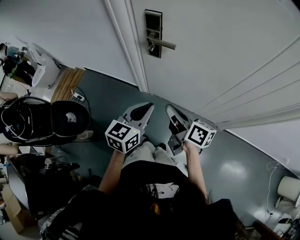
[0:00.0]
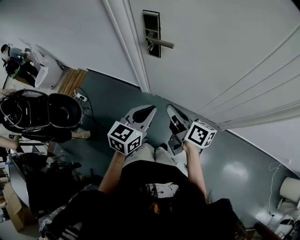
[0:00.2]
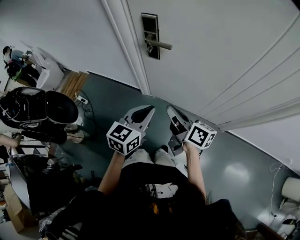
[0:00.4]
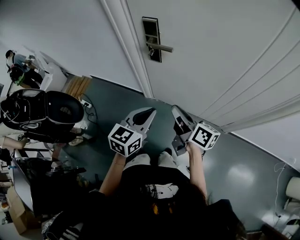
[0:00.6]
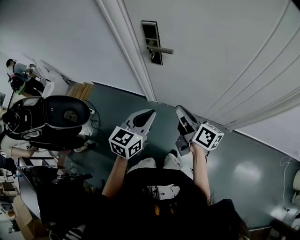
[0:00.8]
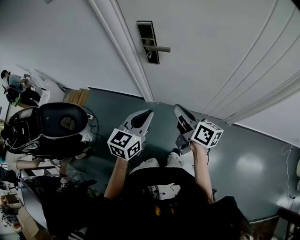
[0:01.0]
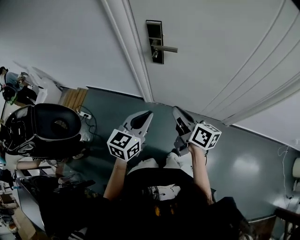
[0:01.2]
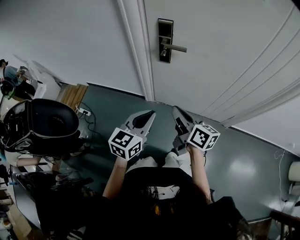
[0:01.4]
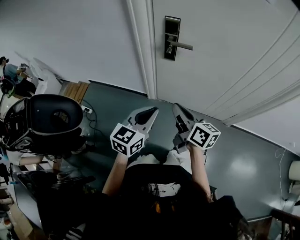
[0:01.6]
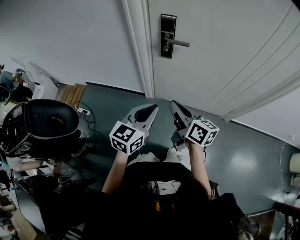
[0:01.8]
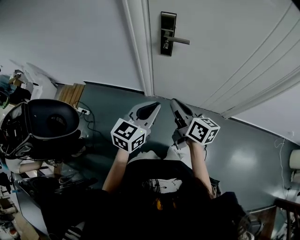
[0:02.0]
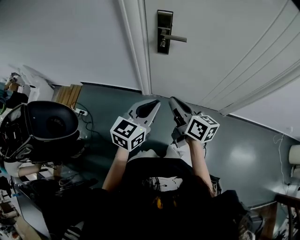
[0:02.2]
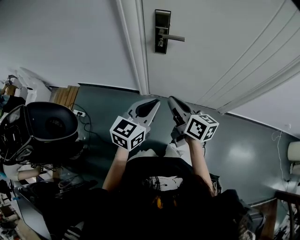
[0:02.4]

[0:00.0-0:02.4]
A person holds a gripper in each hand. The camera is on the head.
0:00.0 to 0:01.2: The right gripper shifts by approximately 5 cm, while the left gripper goes roughly 10 cm to the left and backward.
0:01.2 to 0:02.4: The right gripper goes about 10 cm to the left.

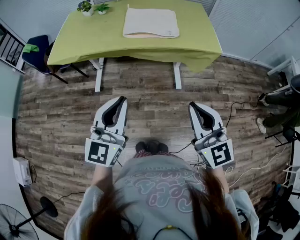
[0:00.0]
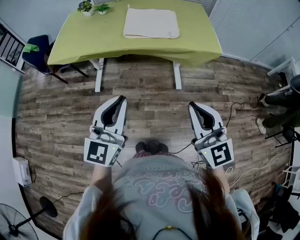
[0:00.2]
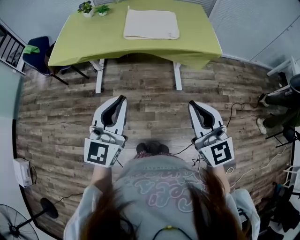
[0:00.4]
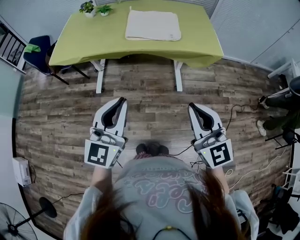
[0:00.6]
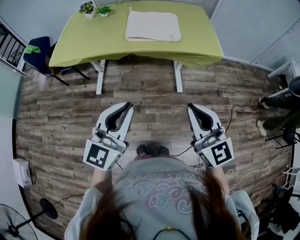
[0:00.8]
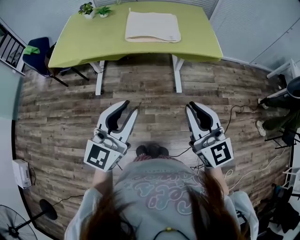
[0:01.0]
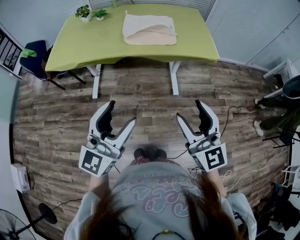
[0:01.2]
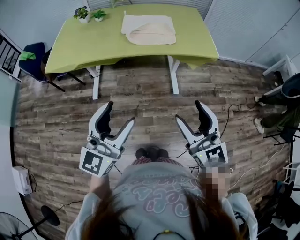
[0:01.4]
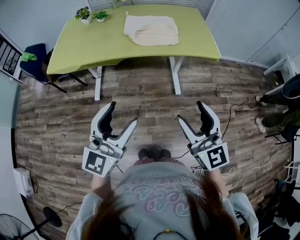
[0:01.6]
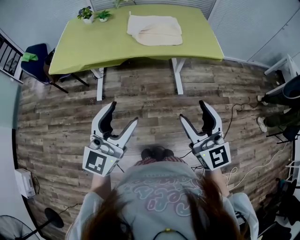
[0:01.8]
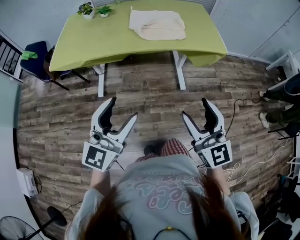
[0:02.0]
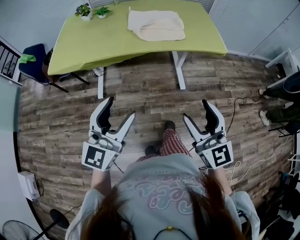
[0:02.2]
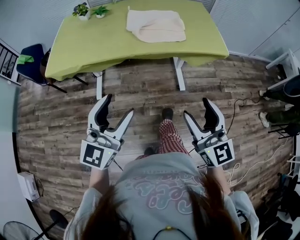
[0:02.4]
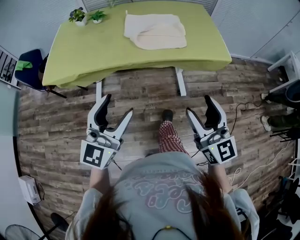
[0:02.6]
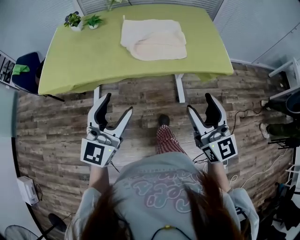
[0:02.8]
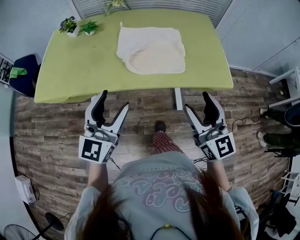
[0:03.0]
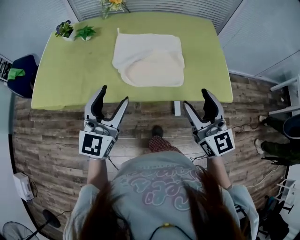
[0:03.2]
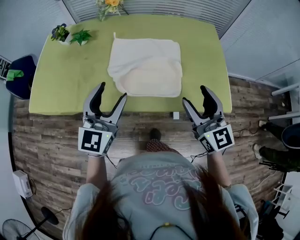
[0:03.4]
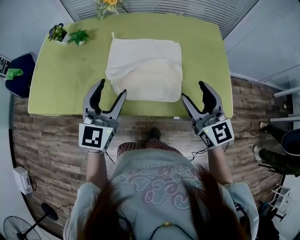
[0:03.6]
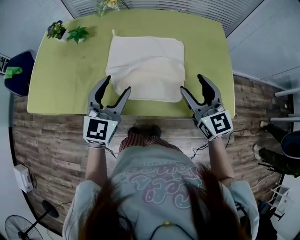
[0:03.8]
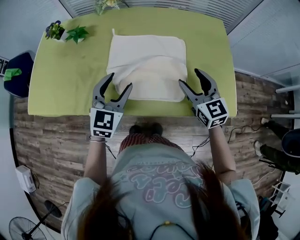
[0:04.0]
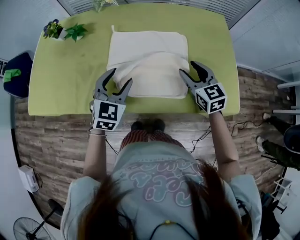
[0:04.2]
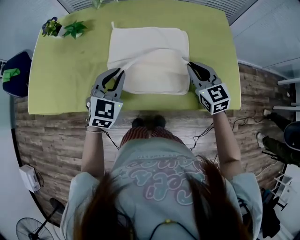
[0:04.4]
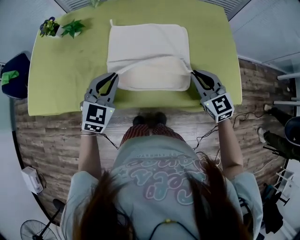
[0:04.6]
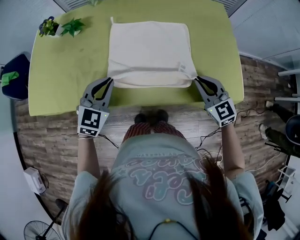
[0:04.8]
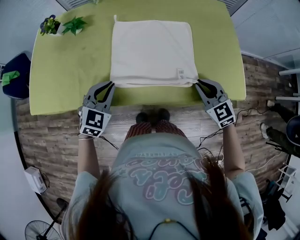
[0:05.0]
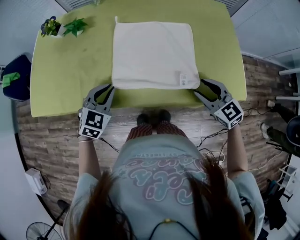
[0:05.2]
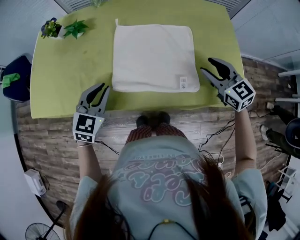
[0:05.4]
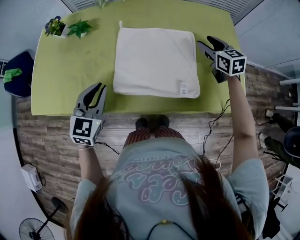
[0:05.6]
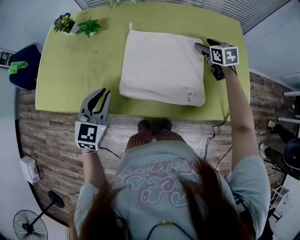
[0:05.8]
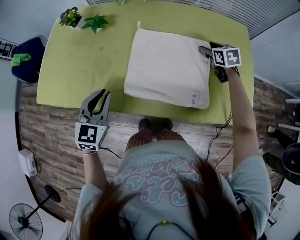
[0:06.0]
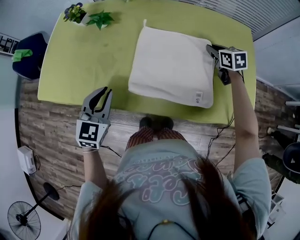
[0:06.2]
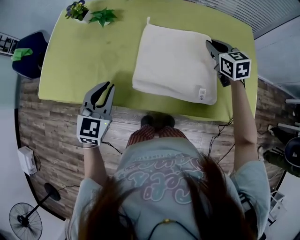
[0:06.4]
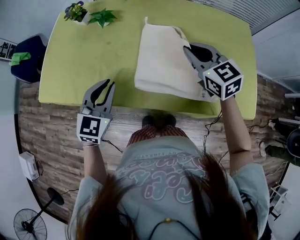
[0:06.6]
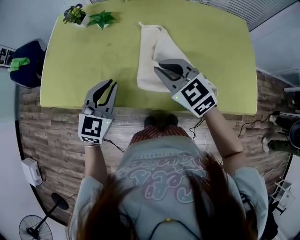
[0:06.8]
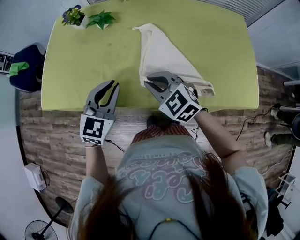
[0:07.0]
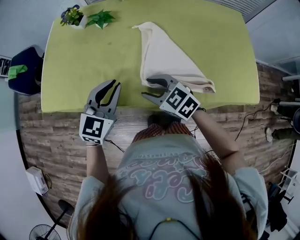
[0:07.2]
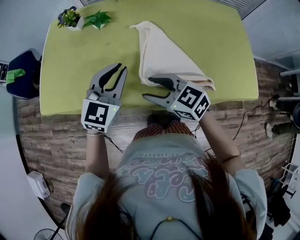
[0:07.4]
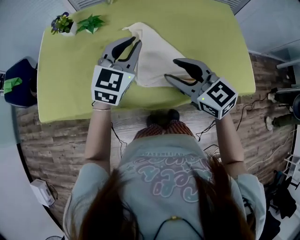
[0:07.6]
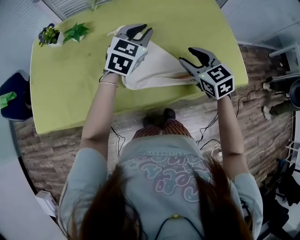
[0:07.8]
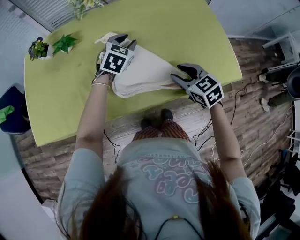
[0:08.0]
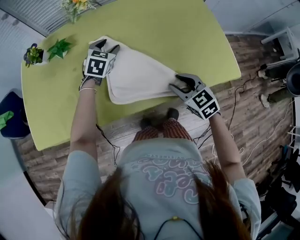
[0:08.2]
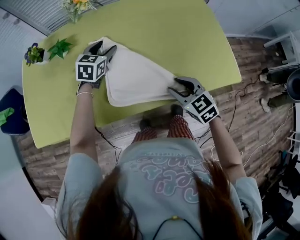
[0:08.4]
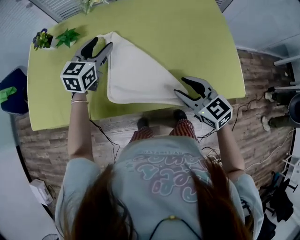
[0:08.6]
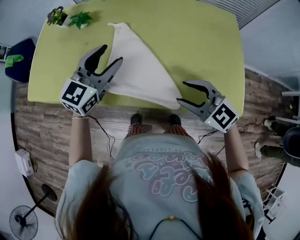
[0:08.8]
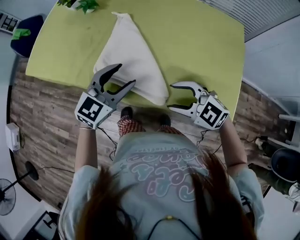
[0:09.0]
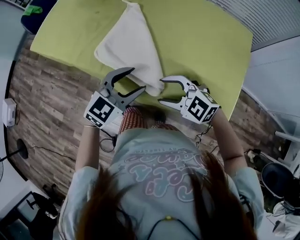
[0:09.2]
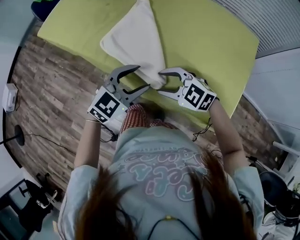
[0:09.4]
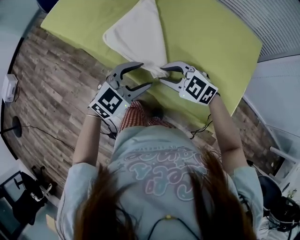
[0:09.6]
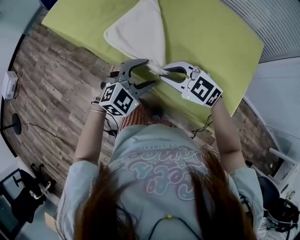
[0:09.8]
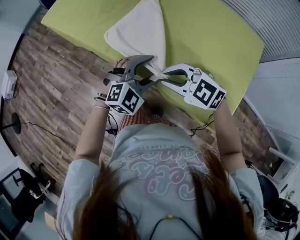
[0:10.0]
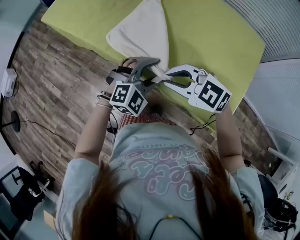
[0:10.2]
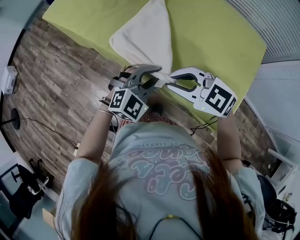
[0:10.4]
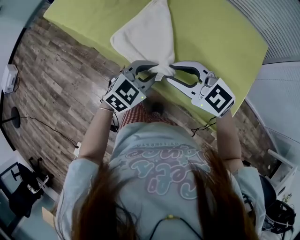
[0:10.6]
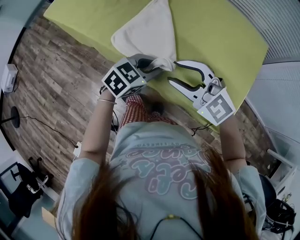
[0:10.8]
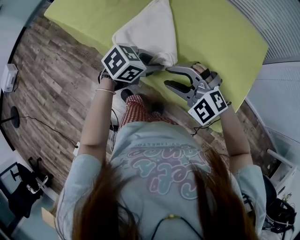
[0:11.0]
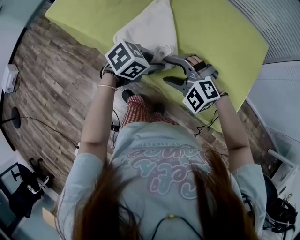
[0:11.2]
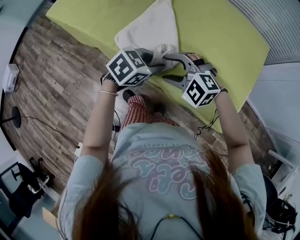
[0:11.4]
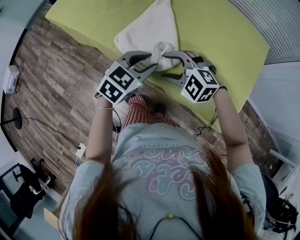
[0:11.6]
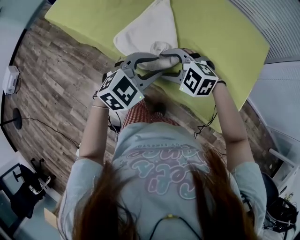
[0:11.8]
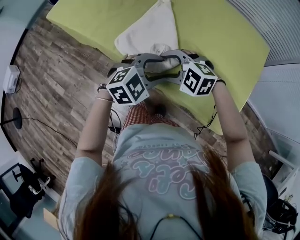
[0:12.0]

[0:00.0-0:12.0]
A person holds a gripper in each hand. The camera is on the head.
0:00.0 to 0:01.6: The right gripper opens its fingers, while the left gripper opens.
0:01.6 to 0:03.0: Both grippers travel together forward, some 25 cm.
0:03.0 to 0:04.4: The grippers both shift forward and downward by roughly 30 cm. The right gripper swivels some 20 degrees, and closes its fingers. The left gripper changes its angle by roughly 30 degrees, and closes up.
0:04.4 to 0:06.0: The right gripper is displaced forward by approximately 20 cm, turns by about 30 degrees, and opens up. Meanwhile the left gripper goes roughly 10 cm to the left.
0:06.0 to 0:07.6: The right gripper heads to the left, backward and upward, covering about 35 cm, turns by some 30 degrees, and closes, then opens again; the left gripper travels forward, to the right and upward by some 15 cm, and changes its angle by about 30 degrees.
0:07.6 to 0:09.0: The left gripper goes up and down, approximately 15 cm each way, reversing 2 times, and opens its fingers. Meanwhile the right gripper moves approximately 20 cm, and turns by about 50 degrees.
0:09.0 to 0:10.4: The left gripper ends up some 15 cm from where it was, rotates some 20 degrees, and closes its fingers. The right gripper closes.
0:10.4 to 0:12.0: The right gripper changes place by about 10 cm, rotates some 20 degrees, and opens. The left gripper opens up.

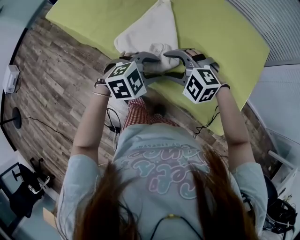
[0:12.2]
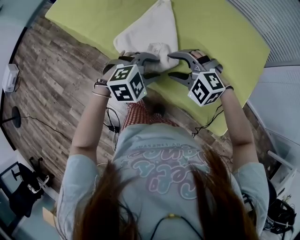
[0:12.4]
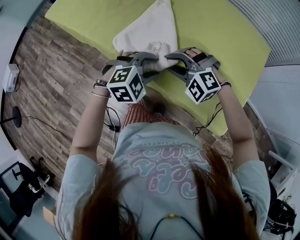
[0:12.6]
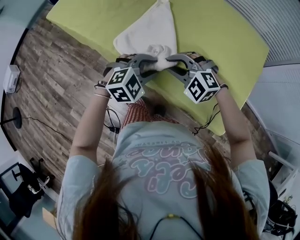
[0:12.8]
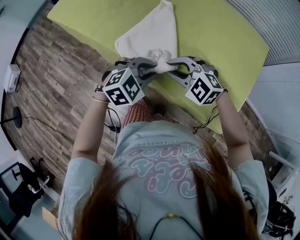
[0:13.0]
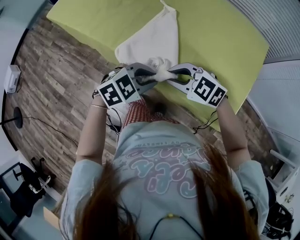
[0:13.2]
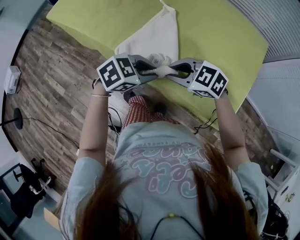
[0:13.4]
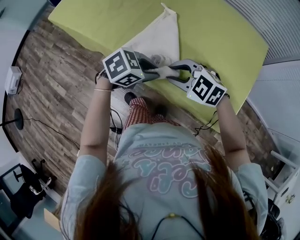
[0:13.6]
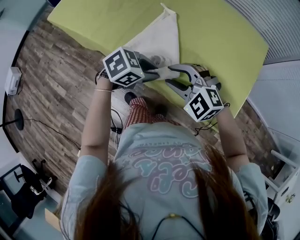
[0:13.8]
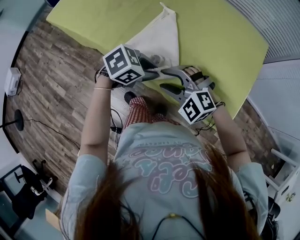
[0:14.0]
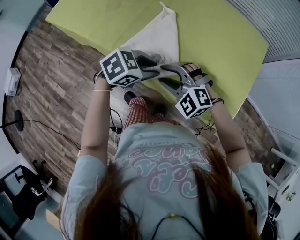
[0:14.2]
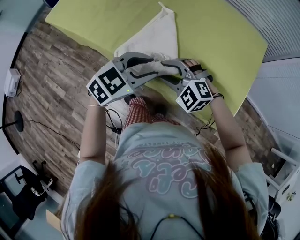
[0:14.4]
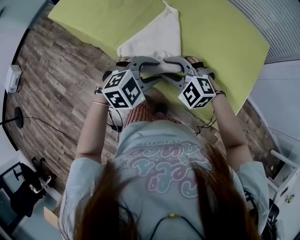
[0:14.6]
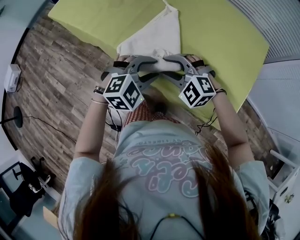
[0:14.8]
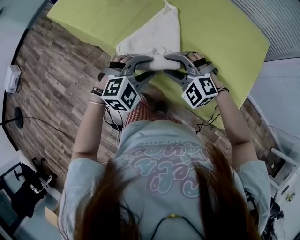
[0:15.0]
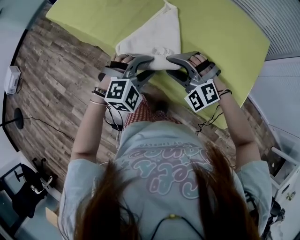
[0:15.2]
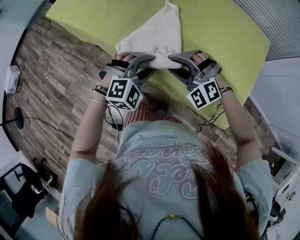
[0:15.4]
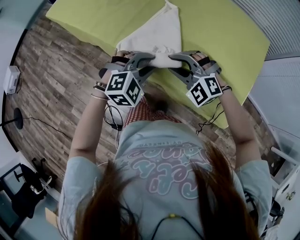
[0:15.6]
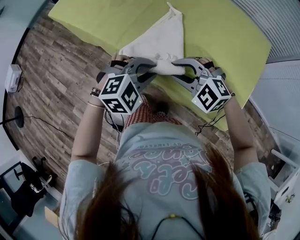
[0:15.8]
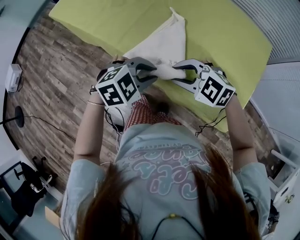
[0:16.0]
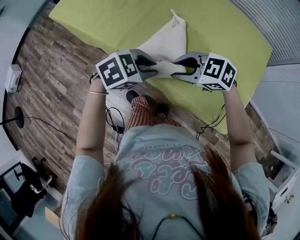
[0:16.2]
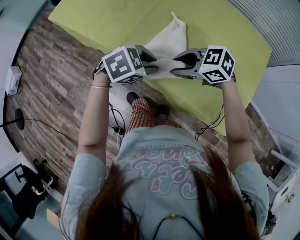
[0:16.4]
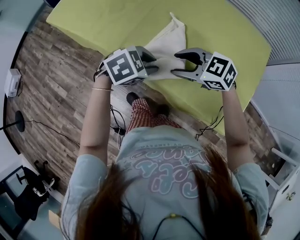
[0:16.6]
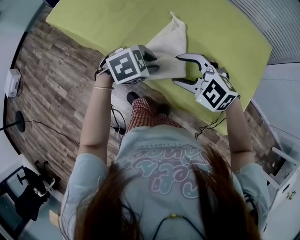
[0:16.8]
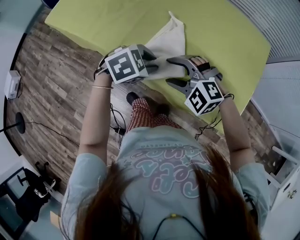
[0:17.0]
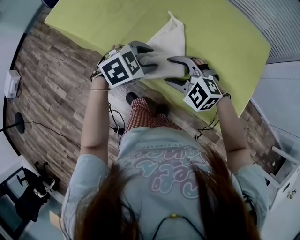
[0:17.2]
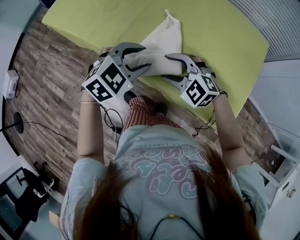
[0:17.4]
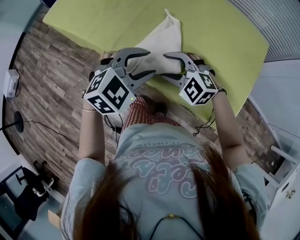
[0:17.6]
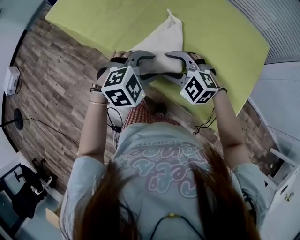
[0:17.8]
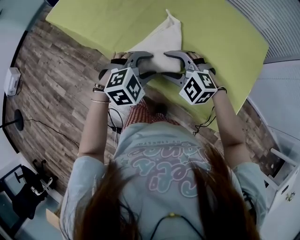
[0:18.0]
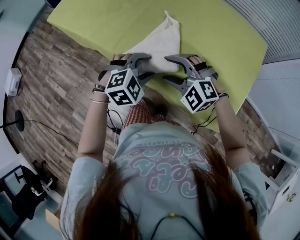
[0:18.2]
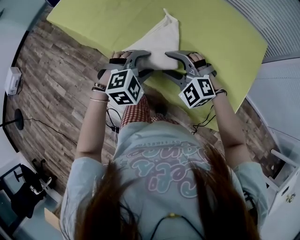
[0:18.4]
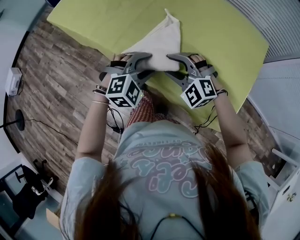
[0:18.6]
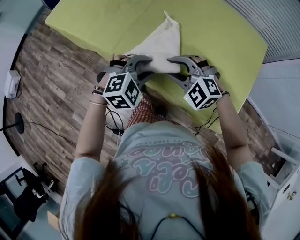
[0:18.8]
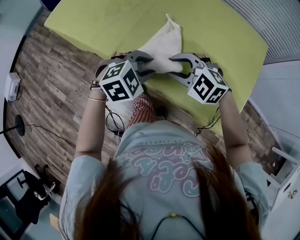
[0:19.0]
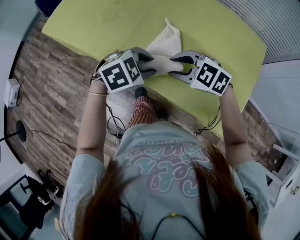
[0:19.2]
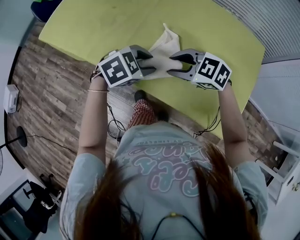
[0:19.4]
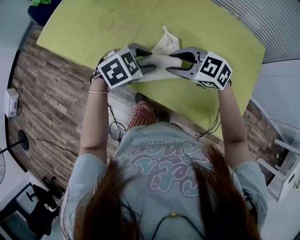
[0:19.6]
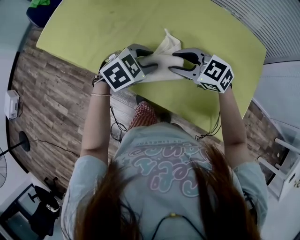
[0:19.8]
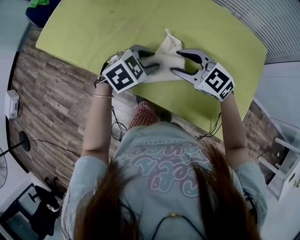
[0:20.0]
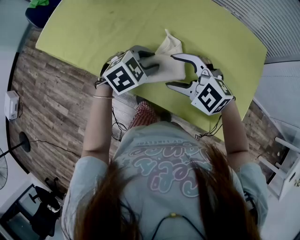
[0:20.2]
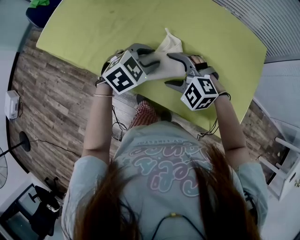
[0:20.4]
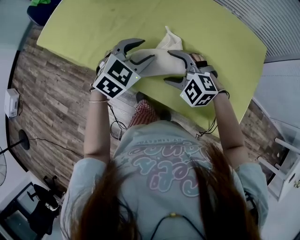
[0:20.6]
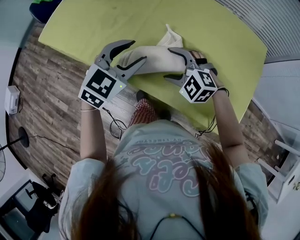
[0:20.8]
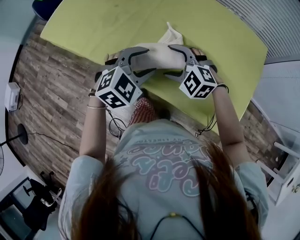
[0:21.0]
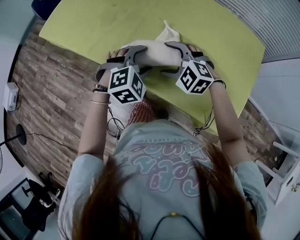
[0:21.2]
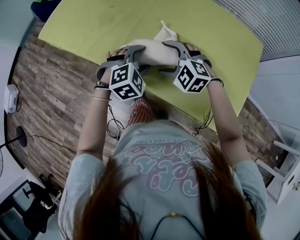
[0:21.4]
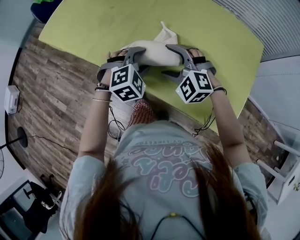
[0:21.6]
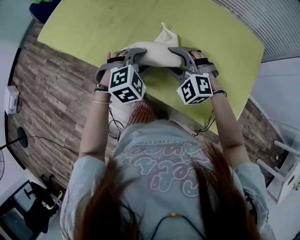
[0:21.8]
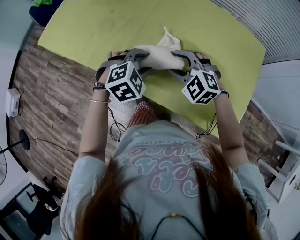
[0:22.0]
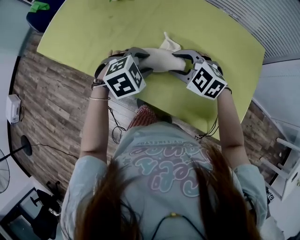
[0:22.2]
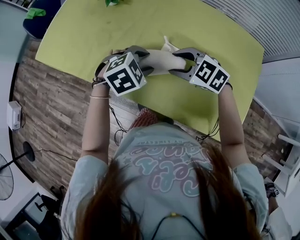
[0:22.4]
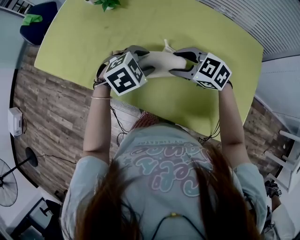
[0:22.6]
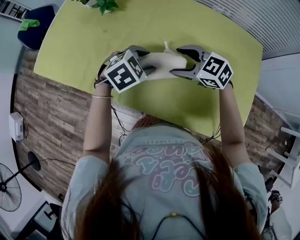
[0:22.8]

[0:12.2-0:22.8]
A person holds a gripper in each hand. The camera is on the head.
0:12.2 to 0:13.8: The left gripper changes its angle by approximately 30 degrees, and closes up.
0:13.8 to 0:15.2: The left gripper changes its angle by about 50 degrees; the right gripper rotates roughly 20 degrees.
0:15.2 to 0:16.8: The left gripper turns by some 40 degrees. Meanwhile the right gripper ends up approximately 5 cm from where it was, and swivels some 30 degrees.
0:16.8 to 0:18.2: The left gripper goes upward and returns, about 5 cm each way, rotates about 30 degrees, and opens.
0:18.2 to 0:19.8: The left gripper shifts by some 15 cm, while the right gripper changes place by approximately 15 cm, and rotates around the line of its fingers by roughly 40 degrees, clockwise from behind.
0:19.8 to 0:21.2: The right gripper rotates some 30 degrees, and opens. Meanwhile the left gripper moves approximately 10 cm upward and comes back, changes its angle by about 30 degrees, and opens its fingers.
0:21.2 to 0:22.8: The right gripper shifts by about 10 cm, and turns by some 40 degrees; the left gripper changes place by about 10 cm, and rotates approximately 20 degrees.
